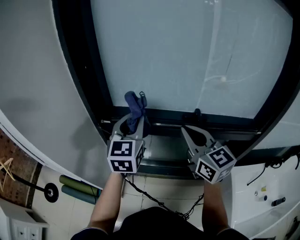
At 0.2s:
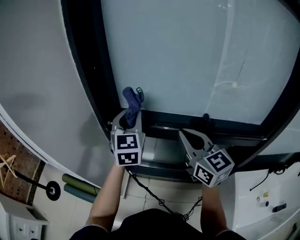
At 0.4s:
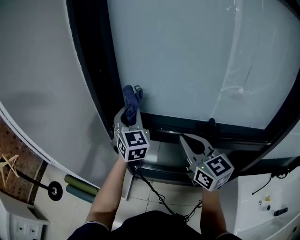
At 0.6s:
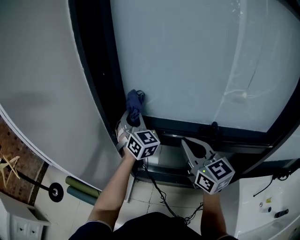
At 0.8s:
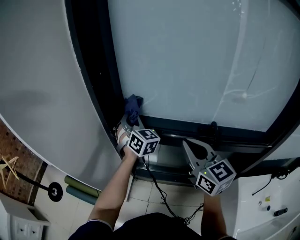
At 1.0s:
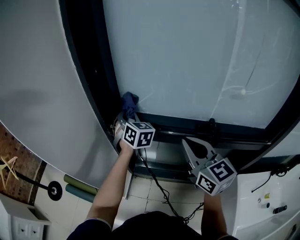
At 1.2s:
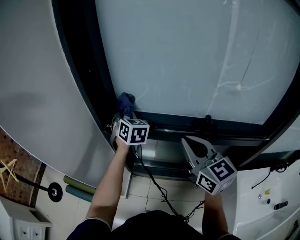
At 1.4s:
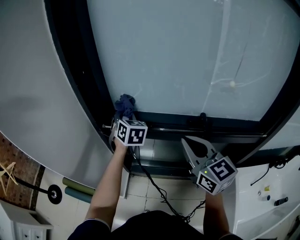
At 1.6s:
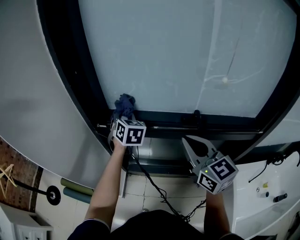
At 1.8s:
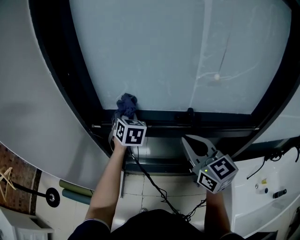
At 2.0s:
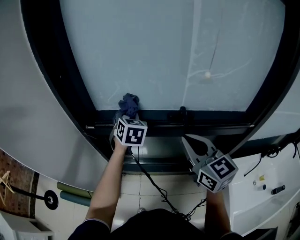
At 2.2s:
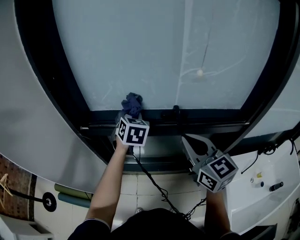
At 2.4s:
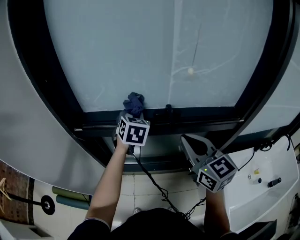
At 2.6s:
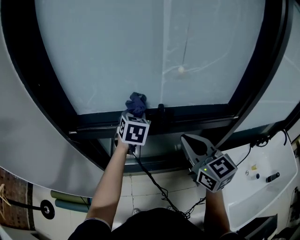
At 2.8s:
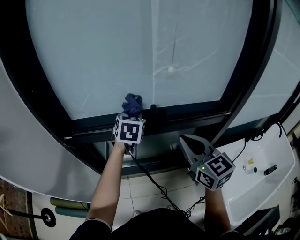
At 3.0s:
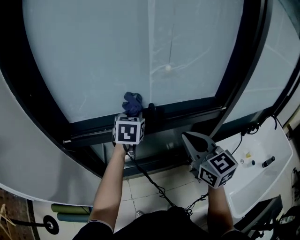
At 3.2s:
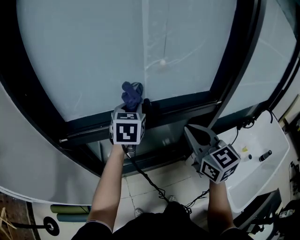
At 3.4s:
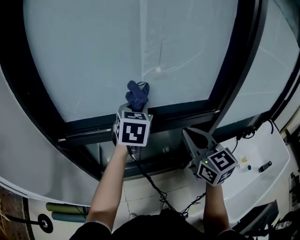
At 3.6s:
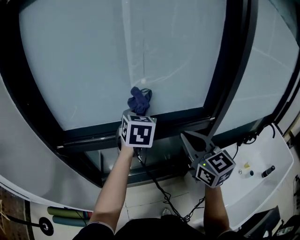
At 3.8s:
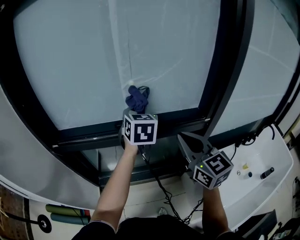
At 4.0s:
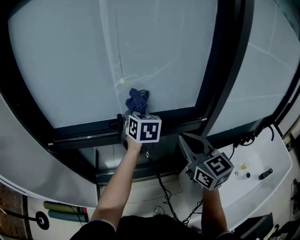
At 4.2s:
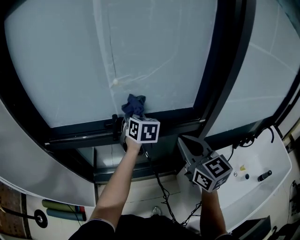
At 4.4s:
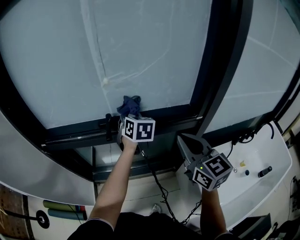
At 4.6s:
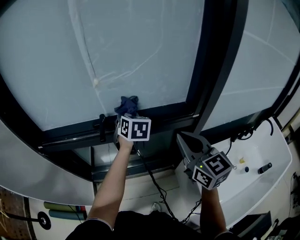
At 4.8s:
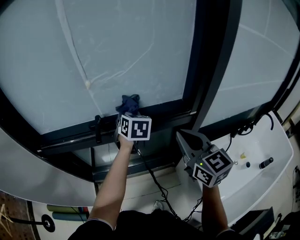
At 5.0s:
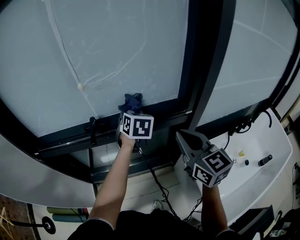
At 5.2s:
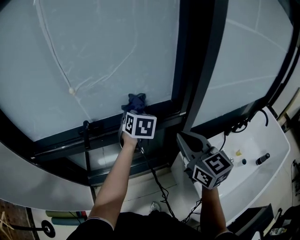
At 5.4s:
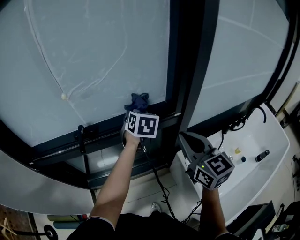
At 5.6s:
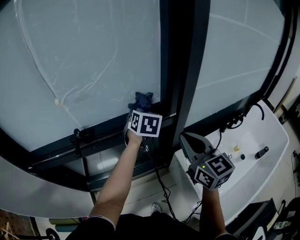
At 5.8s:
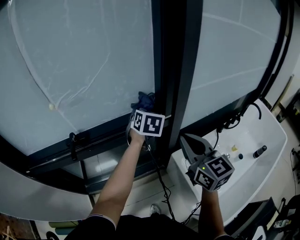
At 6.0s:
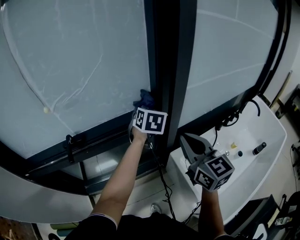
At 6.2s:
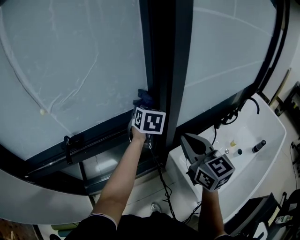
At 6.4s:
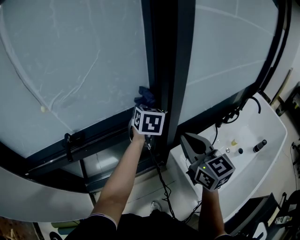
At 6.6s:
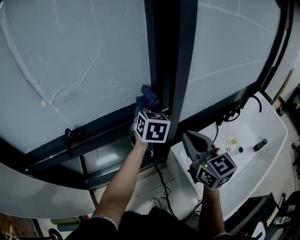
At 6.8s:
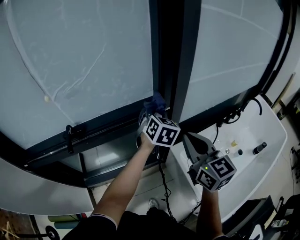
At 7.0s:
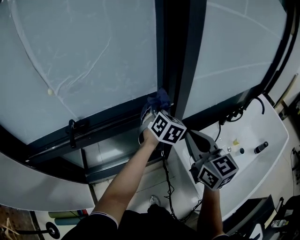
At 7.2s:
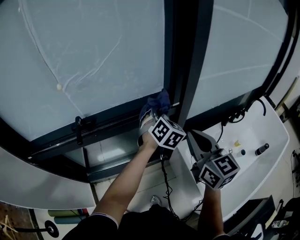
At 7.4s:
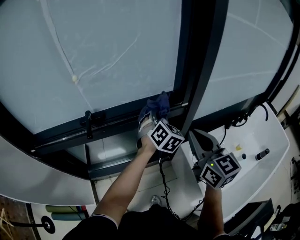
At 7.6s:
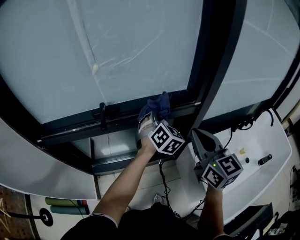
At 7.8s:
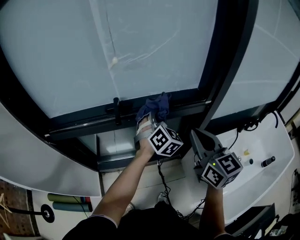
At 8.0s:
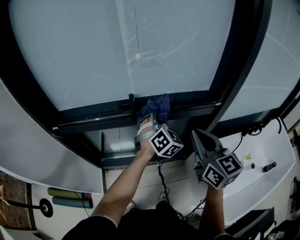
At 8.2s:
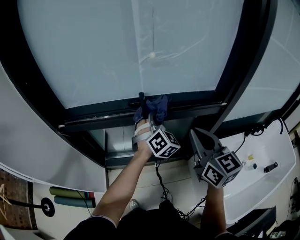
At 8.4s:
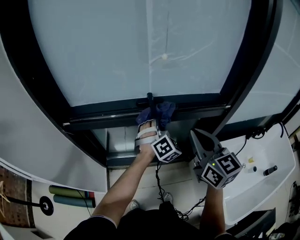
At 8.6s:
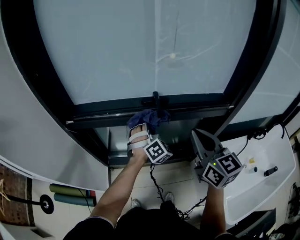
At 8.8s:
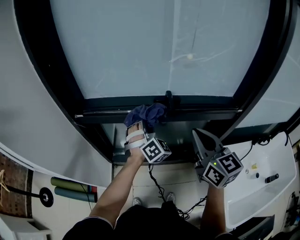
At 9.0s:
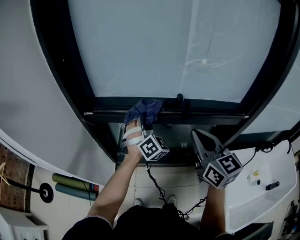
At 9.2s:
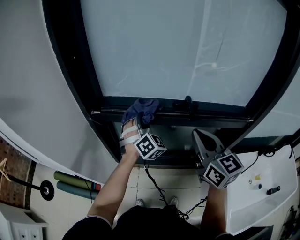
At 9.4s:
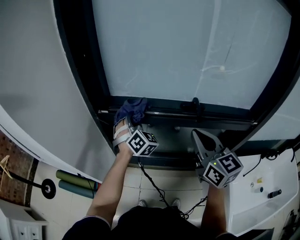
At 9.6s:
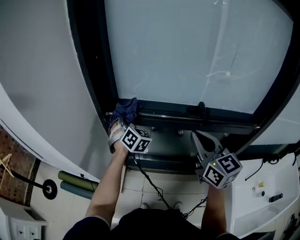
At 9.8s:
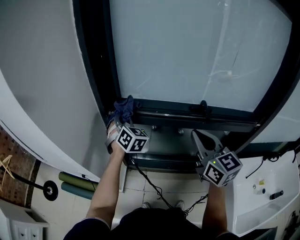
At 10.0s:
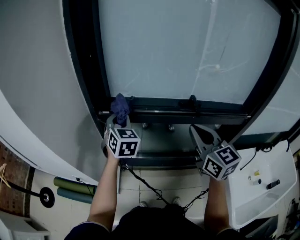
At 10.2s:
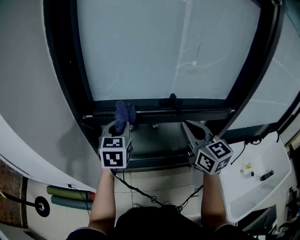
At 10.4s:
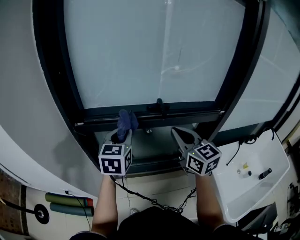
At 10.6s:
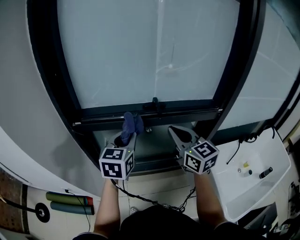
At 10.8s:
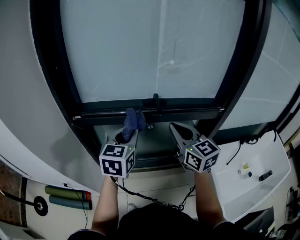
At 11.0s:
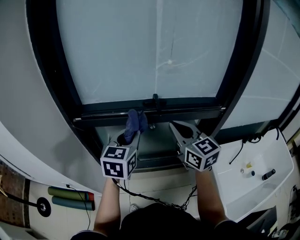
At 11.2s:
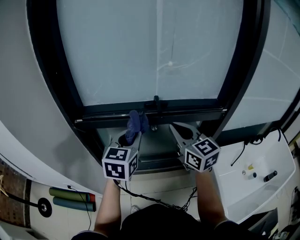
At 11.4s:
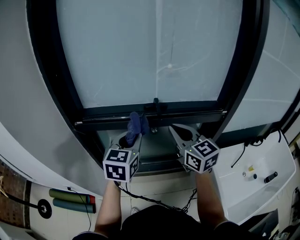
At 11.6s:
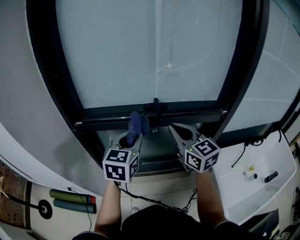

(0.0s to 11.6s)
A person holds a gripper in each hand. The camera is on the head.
0.0s - 1.4s: The left gripper goes approximately 15 cm forward and downward, and rotates about 40 degrees.
1.4s - 2.8s: The left gripper shifts by roughly 25 cm, and turns by some 30 degrees. The right gripper changes place by approximately 15 cm.
2.8s - 4.4s: The two grippers go about 15 cm to the right.
4.4s - 5.8s: The left gripper heads to the right, covering approximately 25 cm, and changes its angle by some 20 degrees, while the right gripper shifts some 15 cm to the right.
5.8s - 7.2s: The left gripper travels backward by about 5 cm, and turns by some 20 degrees.
7.2s - 8.8s: Both grippers travel together to the left, some 35 cm. The left gripper changes its angle by some 30 degrees.
8.8s - 10.2s: The right gripper shifts about 5 cm to the left, while the left gripper shifts approximately 20 cm to the left and upward, and rolls counterclockwise, seen from behind, by about 50 degrees.
10.2s - 11.6s: The left gripper travels to the right and backward by about 15 cm.

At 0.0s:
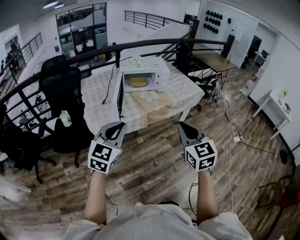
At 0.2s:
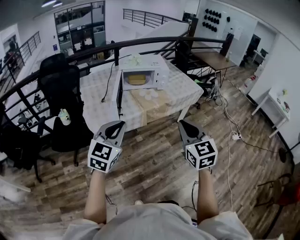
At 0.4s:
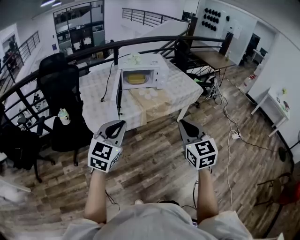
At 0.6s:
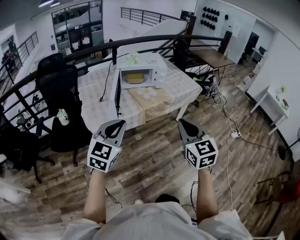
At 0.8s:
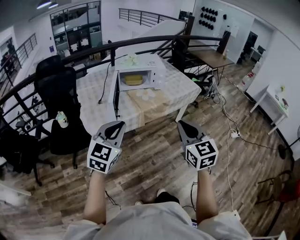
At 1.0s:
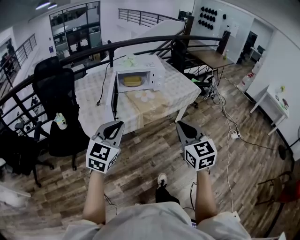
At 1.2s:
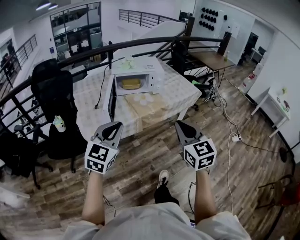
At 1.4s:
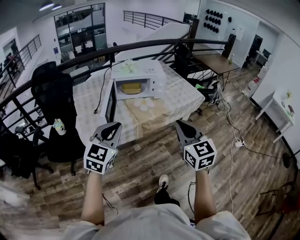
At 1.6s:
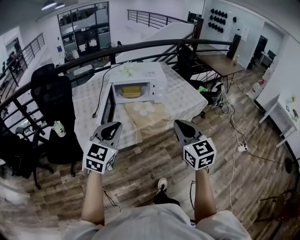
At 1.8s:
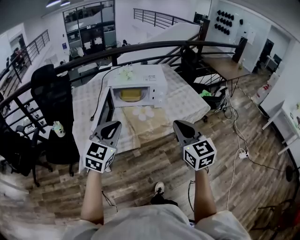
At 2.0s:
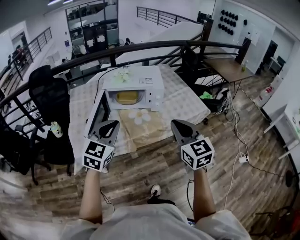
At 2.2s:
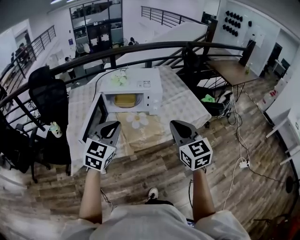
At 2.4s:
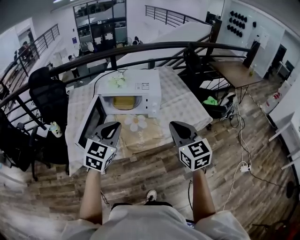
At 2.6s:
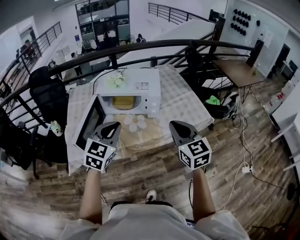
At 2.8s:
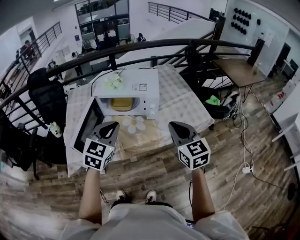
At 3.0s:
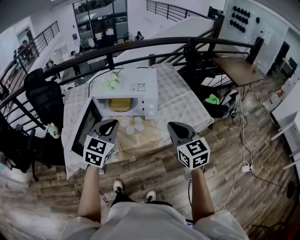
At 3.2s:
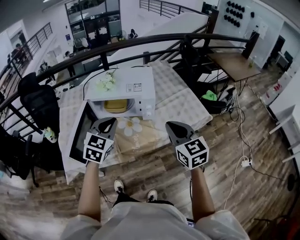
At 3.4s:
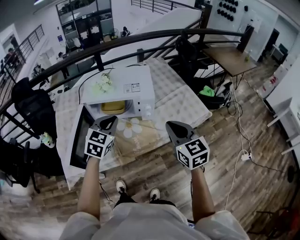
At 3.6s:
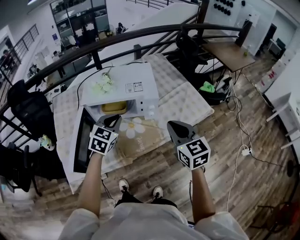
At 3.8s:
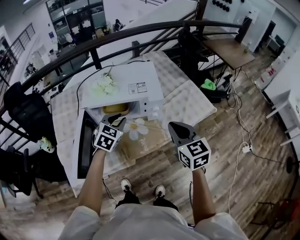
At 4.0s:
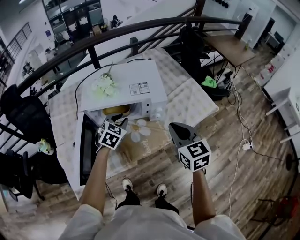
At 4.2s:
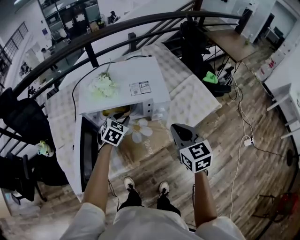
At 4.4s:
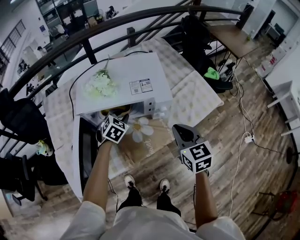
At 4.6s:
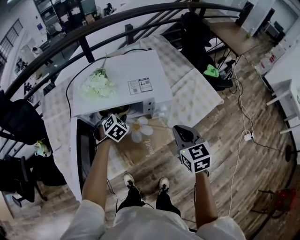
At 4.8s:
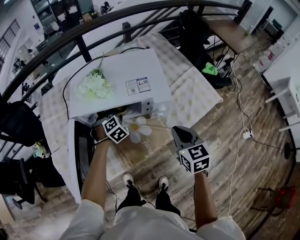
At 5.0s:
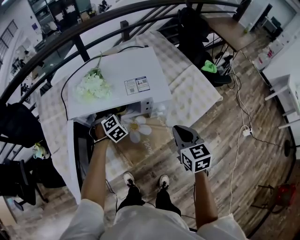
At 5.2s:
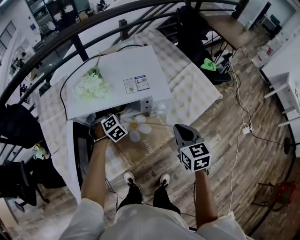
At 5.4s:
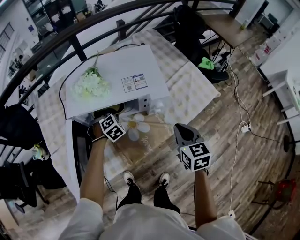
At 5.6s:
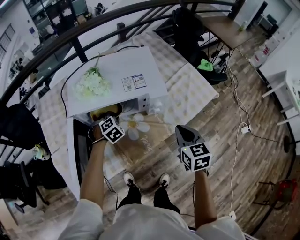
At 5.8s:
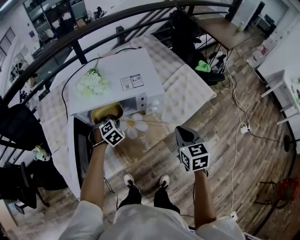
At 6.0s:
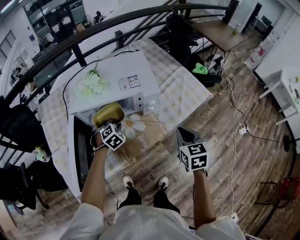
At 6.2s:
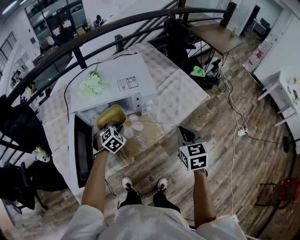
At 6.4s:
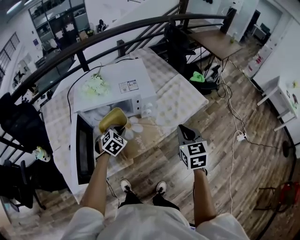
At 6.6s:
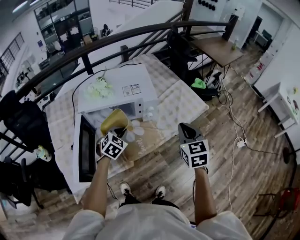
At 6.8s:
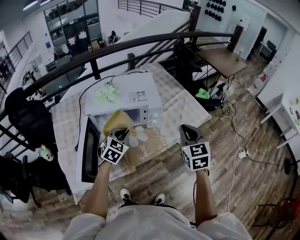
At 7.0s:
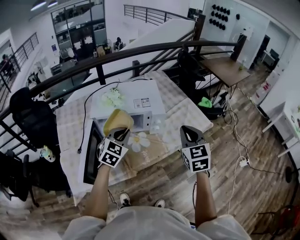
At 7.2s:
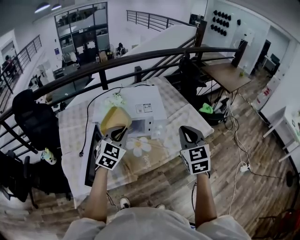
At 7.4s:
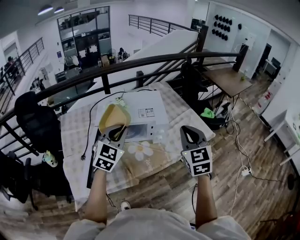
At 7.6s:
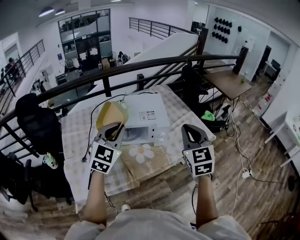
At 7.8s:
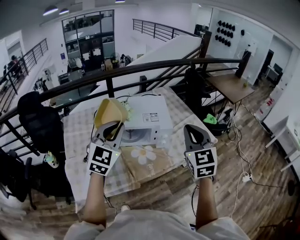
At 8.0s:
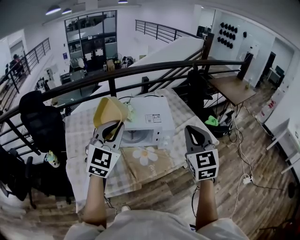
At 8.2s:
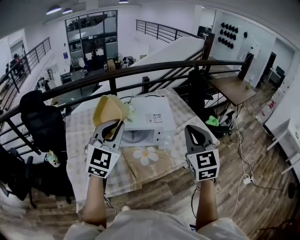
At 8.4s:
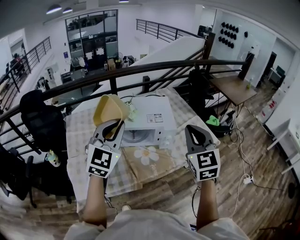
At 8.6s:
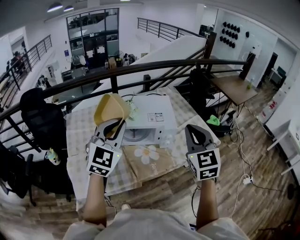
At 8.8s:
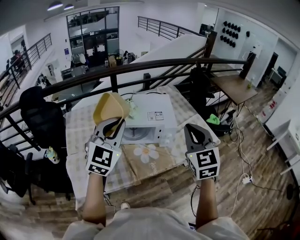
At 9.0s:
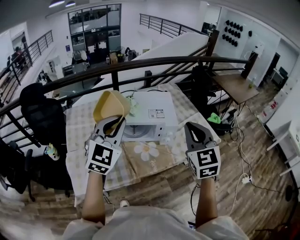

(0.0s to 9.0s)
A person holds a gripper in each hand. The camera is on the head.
0.0s - 1.6s: The grippers both shift forward by roughly 20 cm.
1.6s - 3.0s: Both grippers travel together forward and to the right, approximately 30 cm.
3.0s - 4.4s: The right gripper heads forward, downward and to the left, covering about 20 cm, and swivels some 20 degrees; the left gripper moves forward and downward, roughly 35 cm, rotates approximately 30 degrees, and opens up.
4.4s - 6.0s: The left gripper is displaced backward by some 5 cm, and changes its angle by approximately 20 degrees. Meanwhile the right gripper is displaced to the right and backward by about 10 cm.
6.0s - 7.6s: The right gripper is displaced upward by roughly 25 cm, and rotates roughly 30 degrees; the left gripper heads upward, covering some 35 cm, and angles its fingers upward, by some 50 degrees.
7.6s - 9.0s: The left gripper changes place by about 5 cm.

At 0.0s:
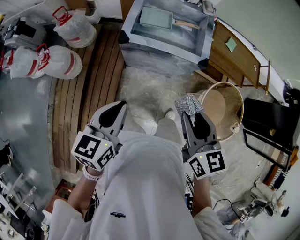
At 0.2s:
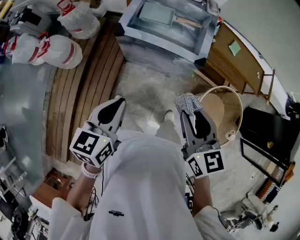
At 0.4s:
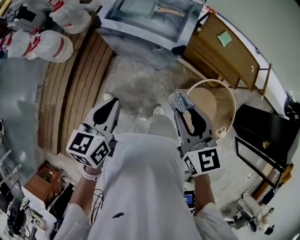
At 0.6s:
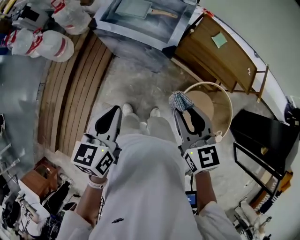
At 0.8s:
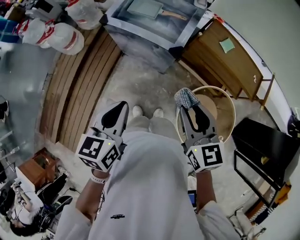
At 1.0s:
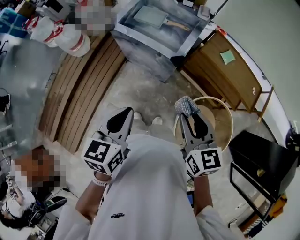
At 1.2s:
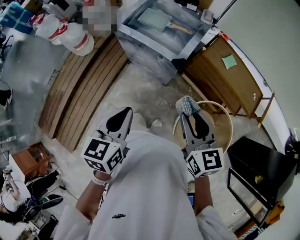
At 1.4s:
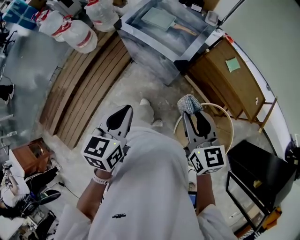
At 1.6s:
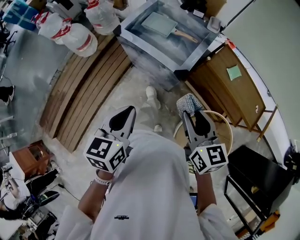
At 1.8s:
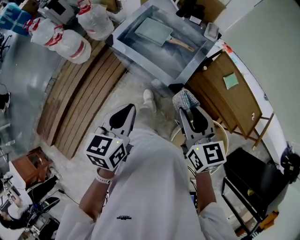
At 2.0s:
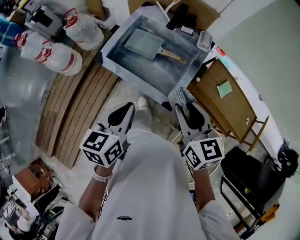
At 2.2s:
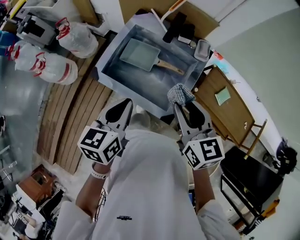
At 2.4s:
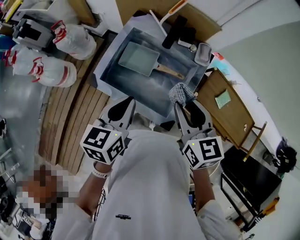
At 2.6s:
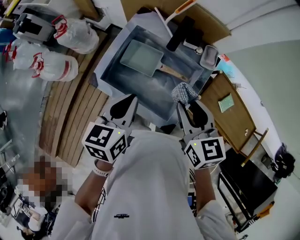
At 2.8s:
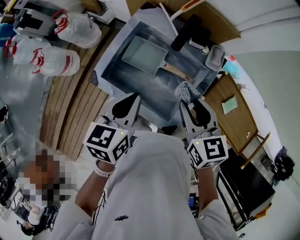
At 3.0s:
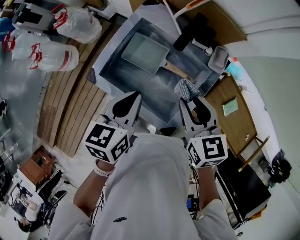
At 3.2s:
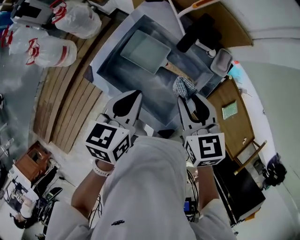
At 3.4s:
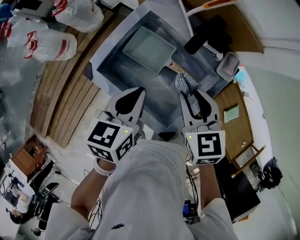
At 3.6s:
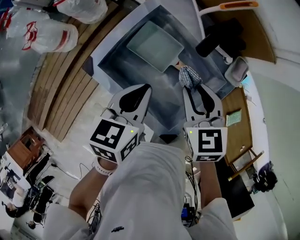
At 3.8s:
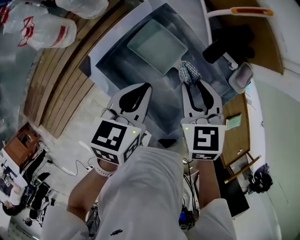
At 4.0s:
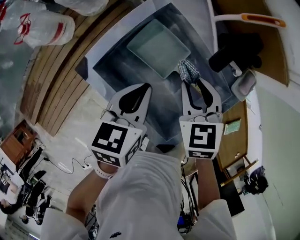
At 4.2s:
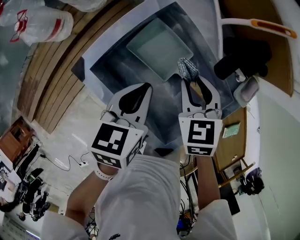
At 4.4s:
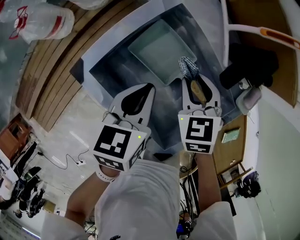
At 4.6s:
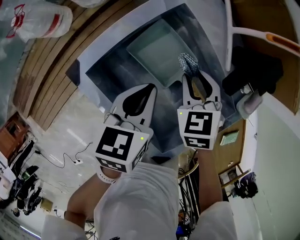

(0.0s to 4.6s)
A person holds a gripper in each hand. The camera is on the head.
0.0s - 1.6s: The left gripper moves approximately 30 cm, and rotates roughly 30 degrees; the right gripper ends up about 25 cm from where it was, and changes its angle by some 20 degrees.
1.6s - 3.0s: The pair of grippers is taken forward, some 40 cm.
3.0s - 4.6s: The grippers both shift downward and forward by some 20 cm. The right gripper changes its angle by roughly 40 degrees.
